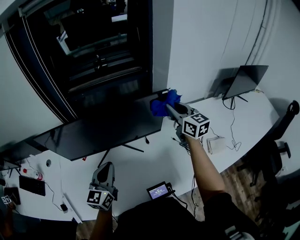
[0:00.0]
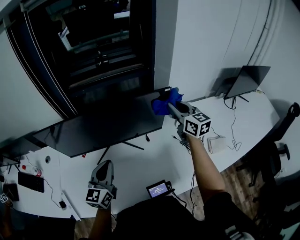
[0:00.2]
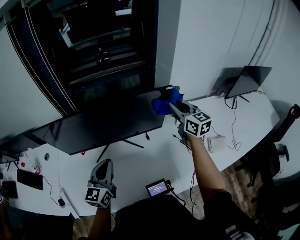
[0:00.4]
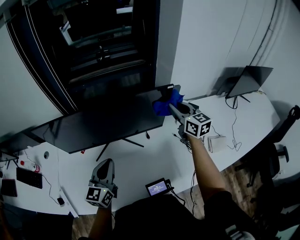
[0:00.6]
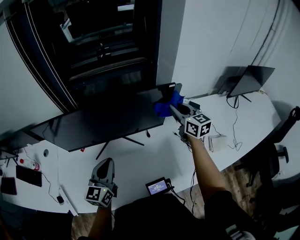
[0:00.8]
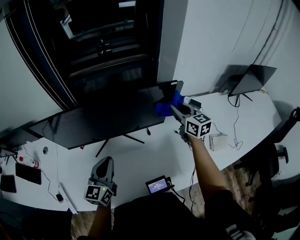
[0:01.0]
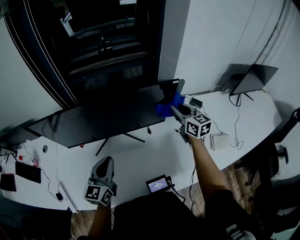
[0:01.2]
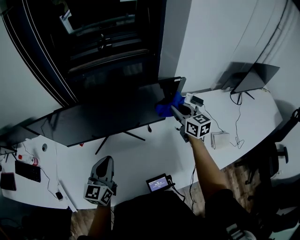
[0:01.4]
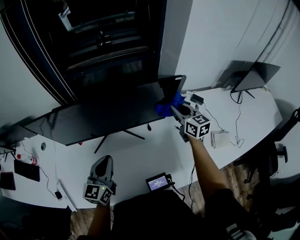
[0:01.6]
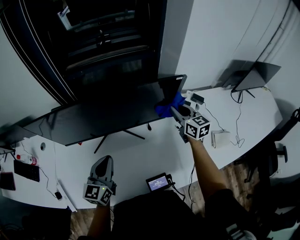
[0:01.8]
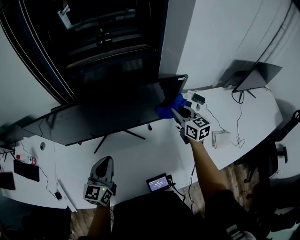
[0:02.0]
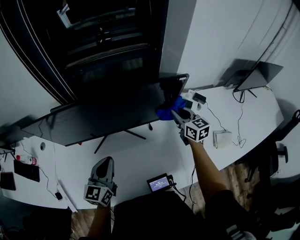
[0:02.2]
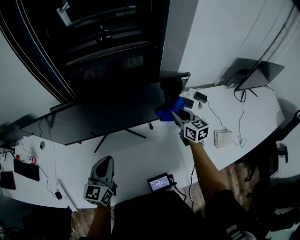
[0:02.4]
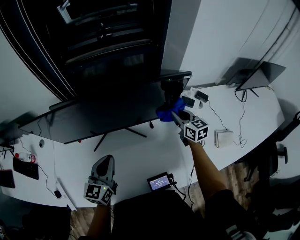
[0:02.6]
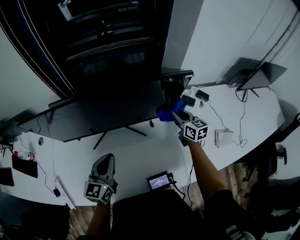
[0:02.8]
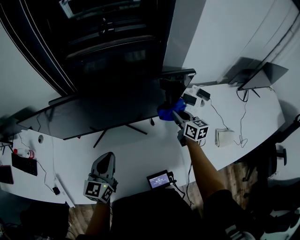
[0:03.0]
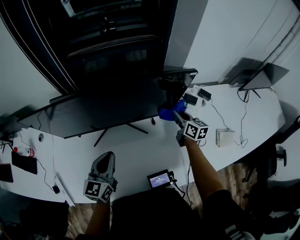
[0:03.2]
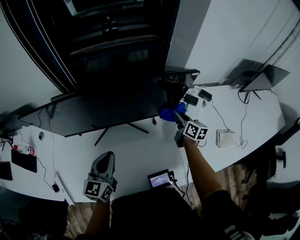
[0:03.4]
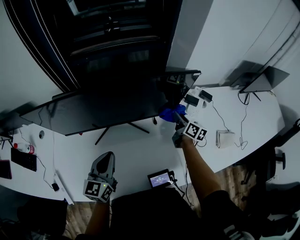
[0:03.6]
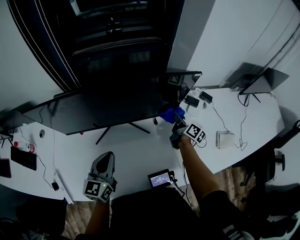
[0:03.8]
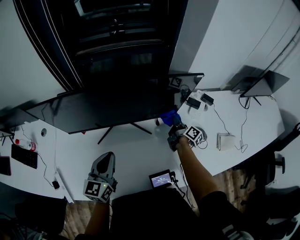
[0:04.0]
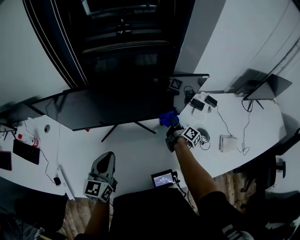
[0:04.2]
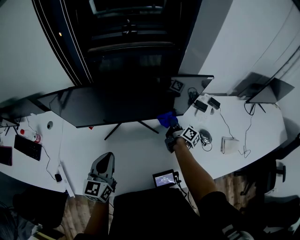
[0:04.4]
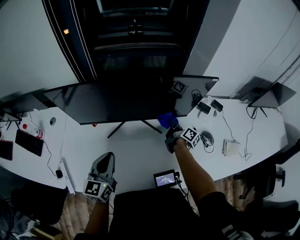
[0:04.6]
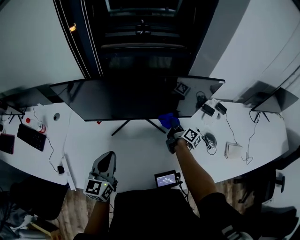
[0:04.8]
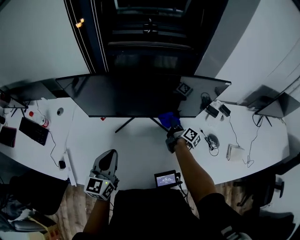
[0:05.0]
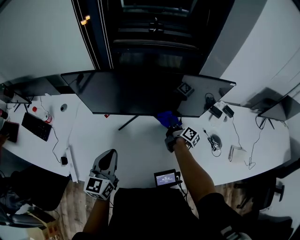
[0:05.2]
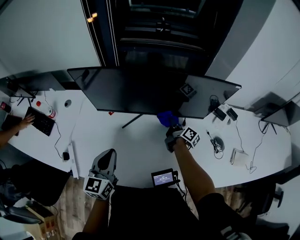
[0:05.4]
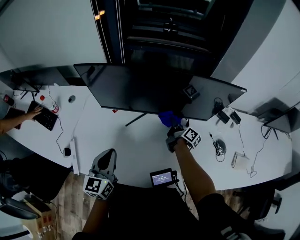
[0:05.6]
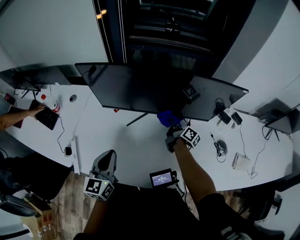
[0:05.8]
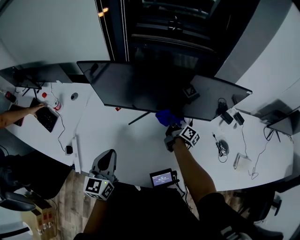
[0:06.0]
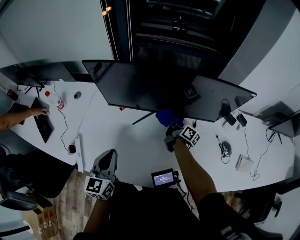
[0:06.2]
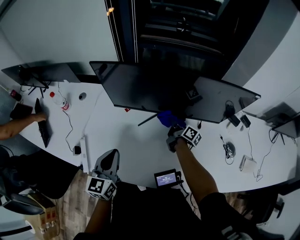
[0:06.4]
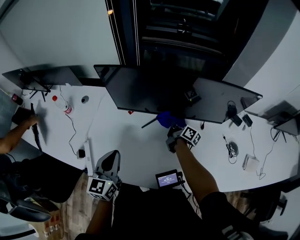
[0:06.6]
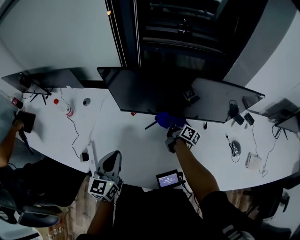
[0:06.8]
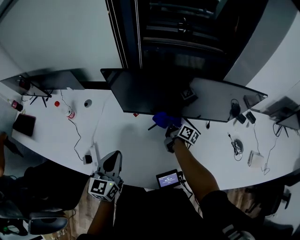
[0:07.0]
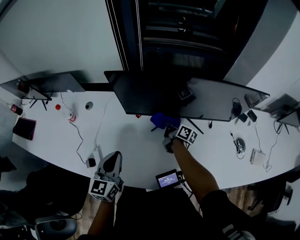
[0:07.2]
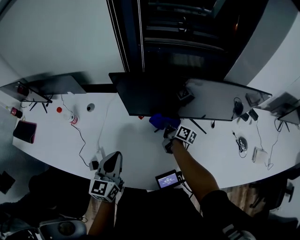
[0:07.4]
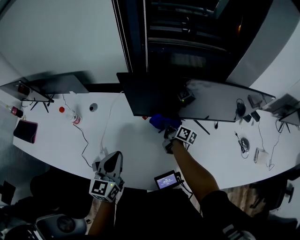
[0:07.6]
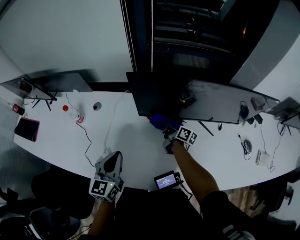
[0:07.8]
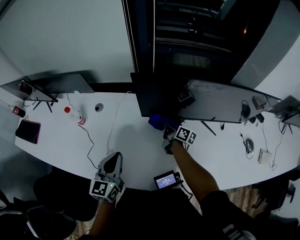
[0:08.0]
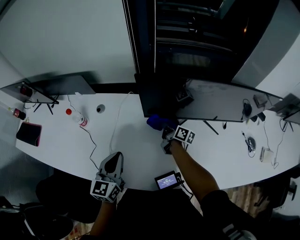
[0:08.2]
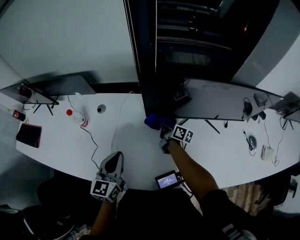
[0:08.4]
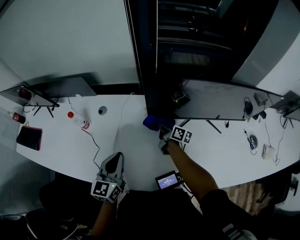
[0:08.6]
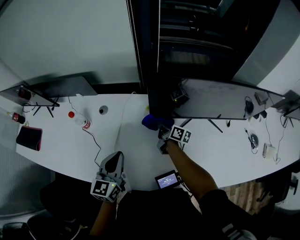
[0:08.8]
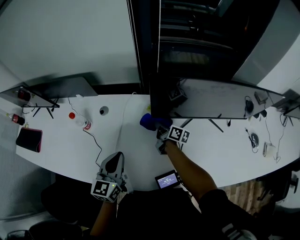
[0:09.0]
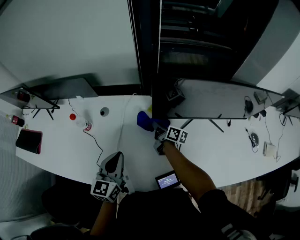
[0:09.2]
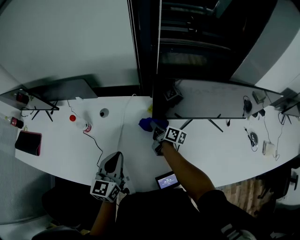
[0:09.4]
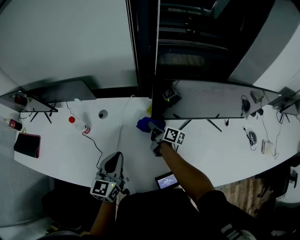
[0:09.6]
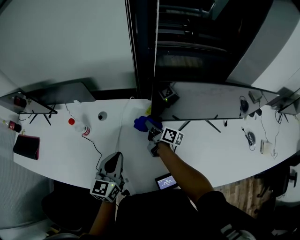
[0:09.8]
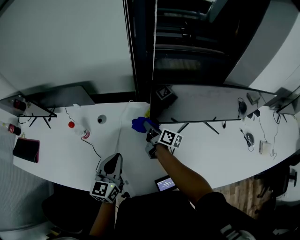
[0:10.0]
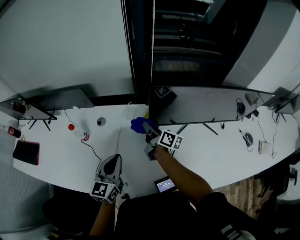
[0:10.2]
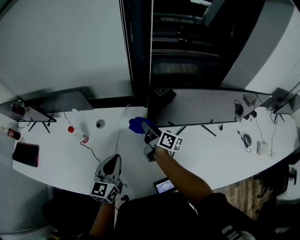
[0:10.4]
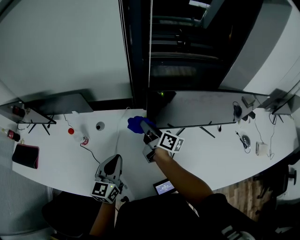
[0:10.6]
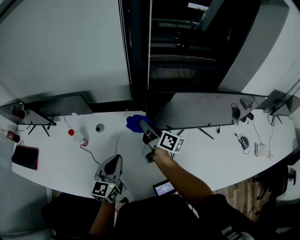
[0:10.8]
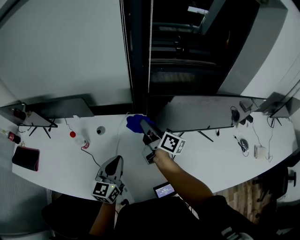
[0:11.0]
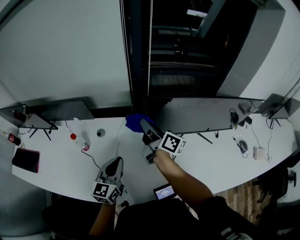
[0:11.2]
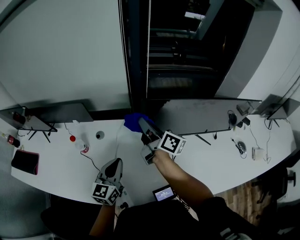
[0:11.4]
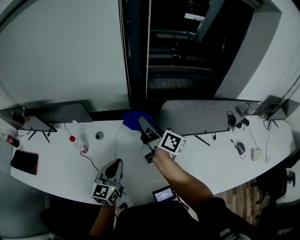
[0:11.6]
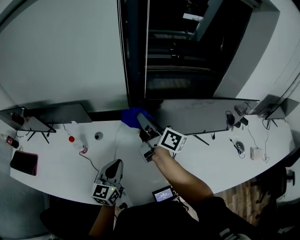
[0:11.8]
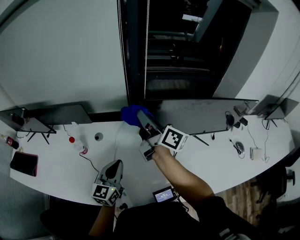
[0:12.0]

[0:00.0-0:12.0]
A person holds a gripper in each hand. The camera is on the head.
0:00.0 to 0:01.6: The right gripper moves downward, some 10 cm.
0:01.6 to 0:03.0: The right gripper goes about 10 cm downward.
0:03.0 to 0:04.4: The right gripper heads to the left and downward, covering roughly 10 cm, and rotates around the line of its fingers by about 50 degrees, clockwise from behind, while the left gripper moves to the left, about 5 cm.
0:04.4 to 0:06.0: The left gripper travels to the left and backward by some 10 cm. The right gripper goes some 15 cm to the left.
0:06.0 to 0:07.6: The right gripper shifts about 20 cm to the left. Meanwhile the left gripper heads to the left and forward, covering some 15 cm.
0:07.6 to 0:09.0: The left gripper is displaced to the left by roughly 10 cm, while the right gripper travels to the left by approximately 15 cm.
0:09.0 to 0:10.4: The right gripper moves upward, roughly 15 cm.
0:10.4 to 0:12.0: The right gripper travels upward by approximately 20 cm.

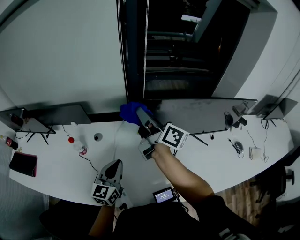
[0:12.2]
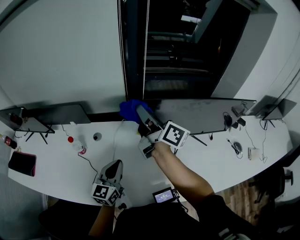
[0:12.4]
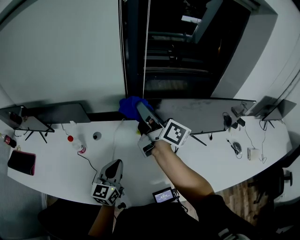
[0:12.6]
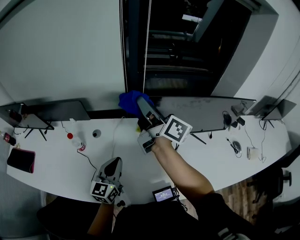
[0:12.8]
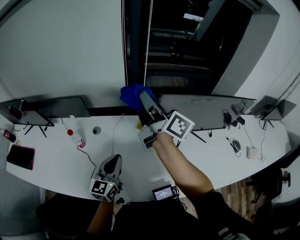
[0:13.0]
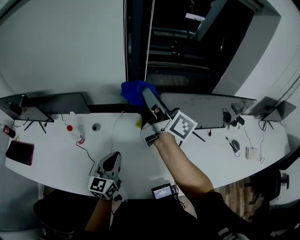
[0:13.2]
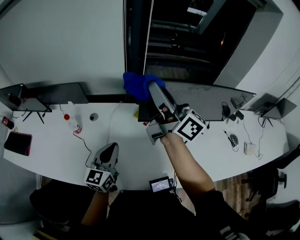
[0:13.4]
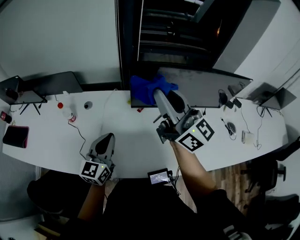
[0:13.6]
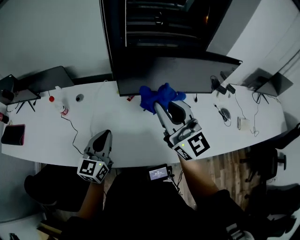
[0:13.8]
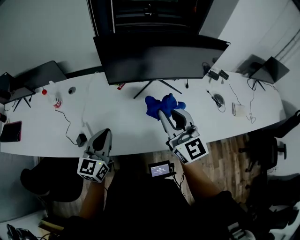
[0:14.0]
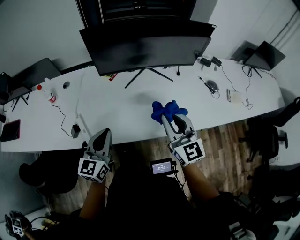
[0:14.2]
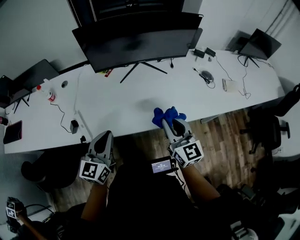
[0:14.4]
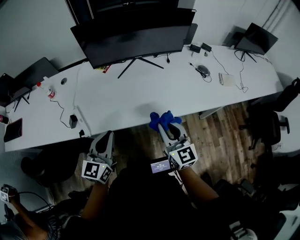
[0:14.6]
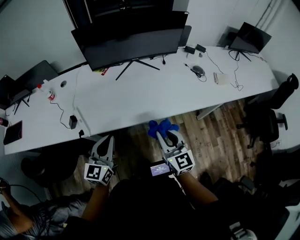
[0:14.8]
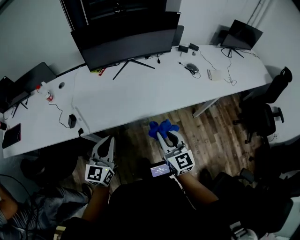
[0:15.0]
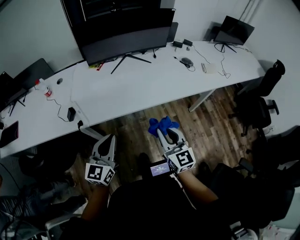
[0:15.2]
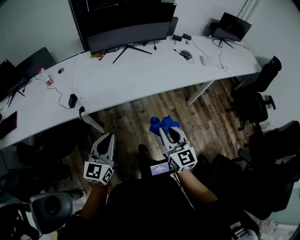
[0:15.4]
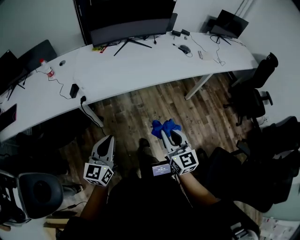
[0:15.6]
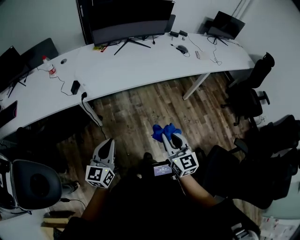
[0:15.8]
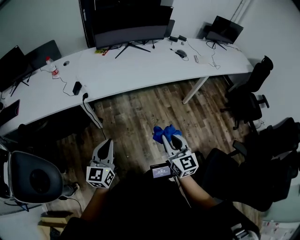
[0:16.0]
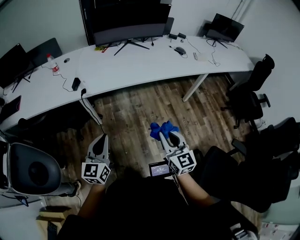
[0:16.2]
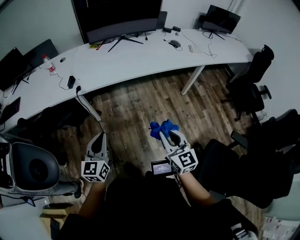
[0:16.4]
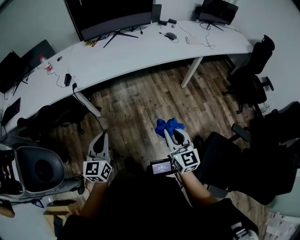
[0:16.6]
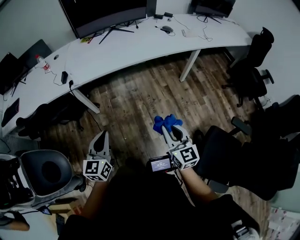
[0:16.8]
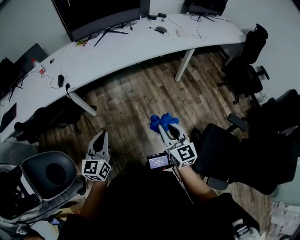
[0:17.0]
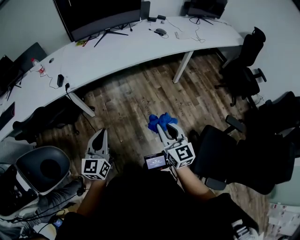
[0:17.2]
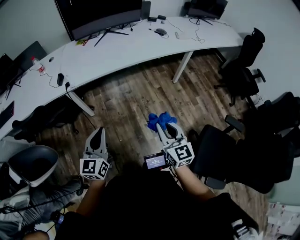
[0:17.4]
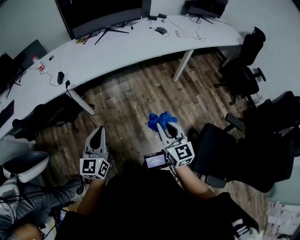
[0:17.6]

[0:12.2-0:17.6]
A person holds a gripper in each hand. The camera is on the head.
0:12.2 to 0:13.6: The left gripper heads backward, covering roughly 5 cm; the right gripper goes approximately 20 cm backward, to the right and upward, and swivels about 40 degrees.
0:13.6 to 0:15.0: The left gripper heads backward and to the right, covering some 35 cm; the right gripper goes roughly 50 cm backward, downward and to the right, and swivels roughly 40 degrees.
0:15.0 to 0:16.2: Both grippers travel together backward, roughly 30 cm.
0:16.2 to 0:17.6: The grippers both shift to the right and backward by approximately 10 cm.

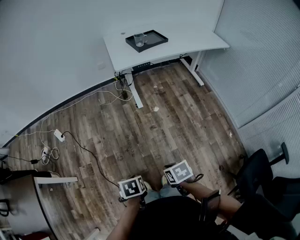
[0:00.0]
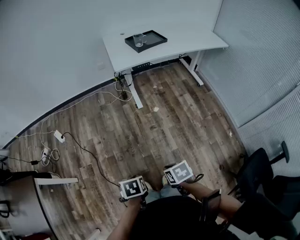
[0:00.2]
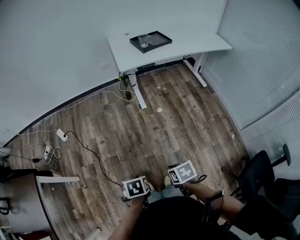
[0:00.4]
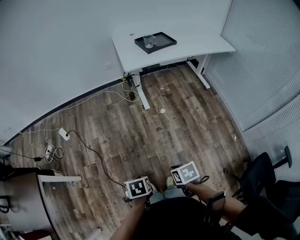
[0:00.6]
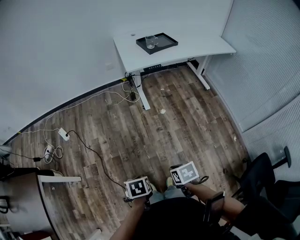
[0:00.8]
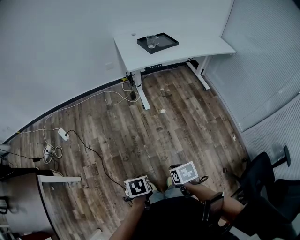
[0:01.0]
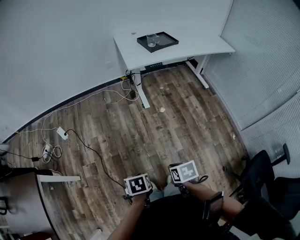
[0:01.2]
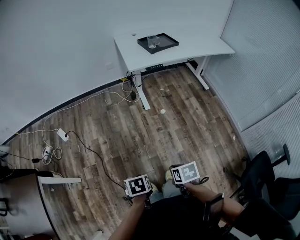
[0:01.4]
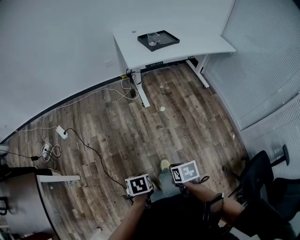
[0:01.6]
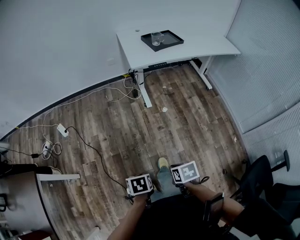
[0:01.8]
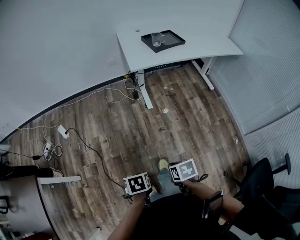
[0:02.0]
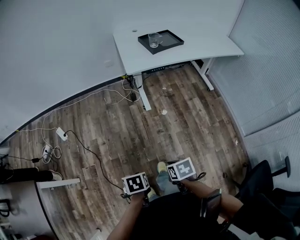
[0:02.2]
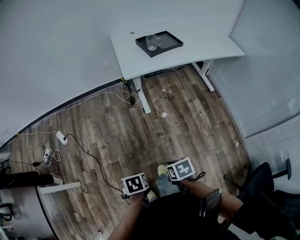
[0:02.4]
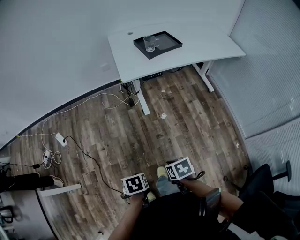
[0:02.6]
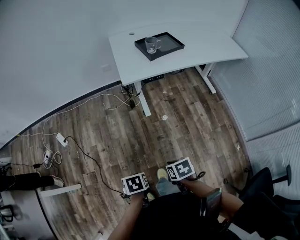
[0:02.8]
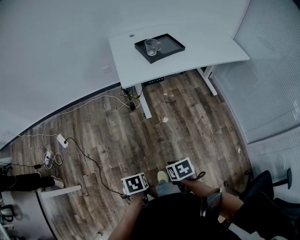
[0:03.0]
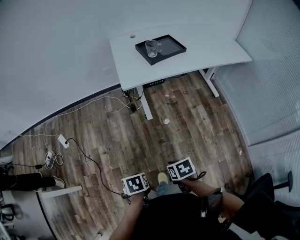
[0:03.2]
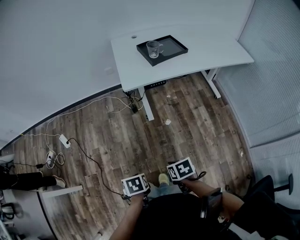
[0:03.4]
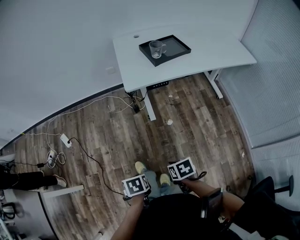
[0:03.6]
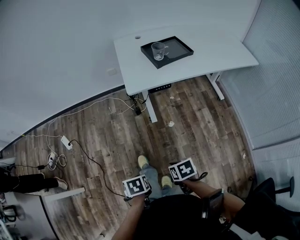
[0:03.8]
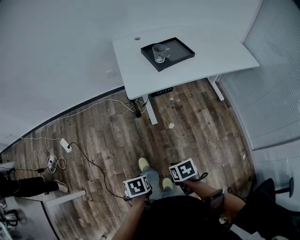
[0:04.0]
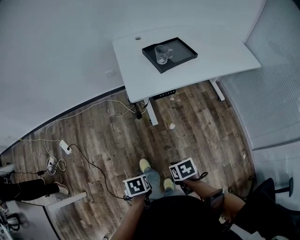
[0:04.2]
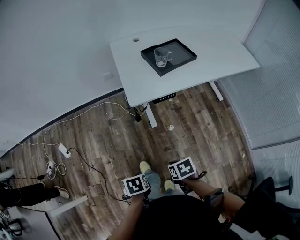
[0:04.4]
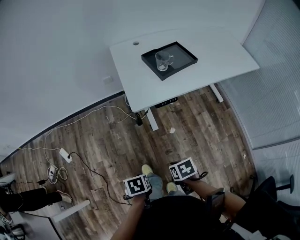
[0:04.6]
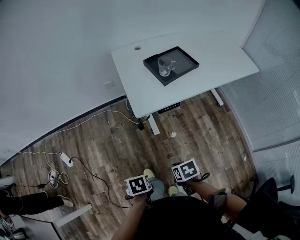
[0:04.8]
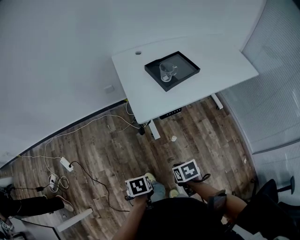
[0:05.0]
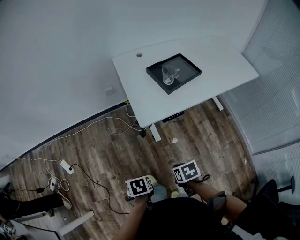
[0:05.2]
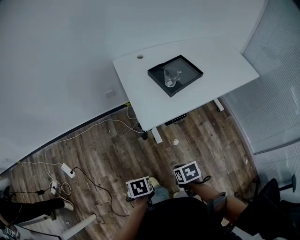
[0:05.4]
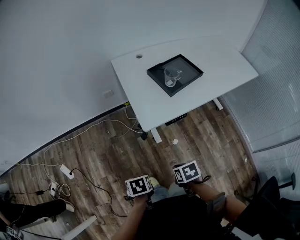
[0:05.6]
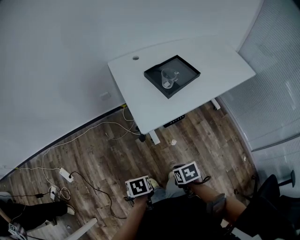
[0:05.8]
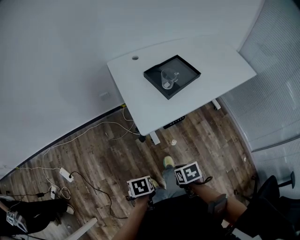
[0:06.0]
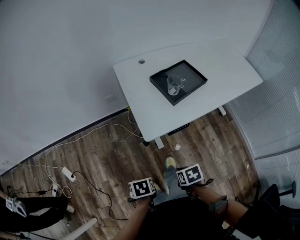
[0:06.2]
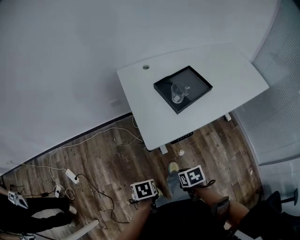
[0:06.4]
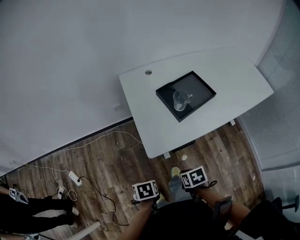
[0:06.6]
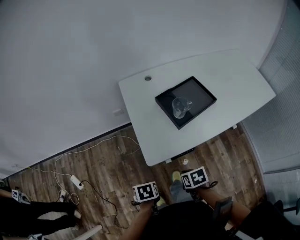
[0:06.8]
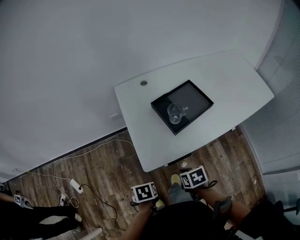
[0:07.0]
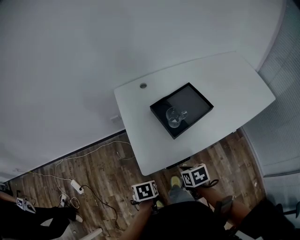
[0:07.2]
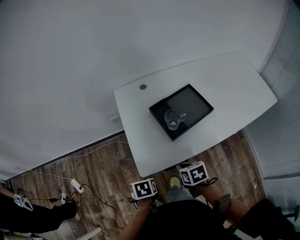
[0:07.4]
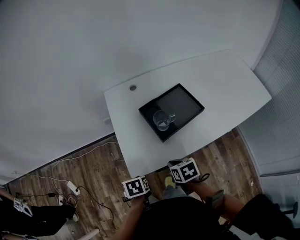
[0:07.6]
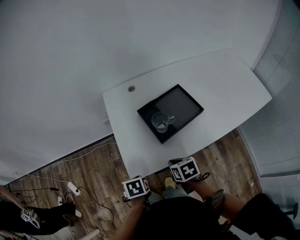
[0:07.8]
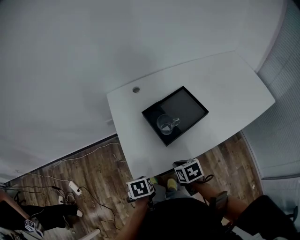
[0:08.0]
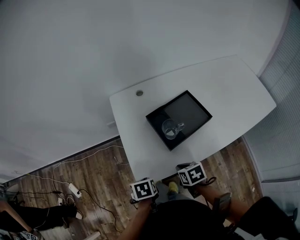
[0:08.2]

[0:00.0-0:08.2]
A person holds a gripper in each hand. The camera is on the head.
0:01.6 to 0:03.2: The right gripper ends up some 20 cm from where it was.
0:03.2 to 0:05.0: The right gripper shifts by approximately 20 cm.
0:05.0 to 0:06.6: The right gripper shifts by some 15 cm.
0:06.6 to 0:08.2: The right gripper moves some 20 cm.
